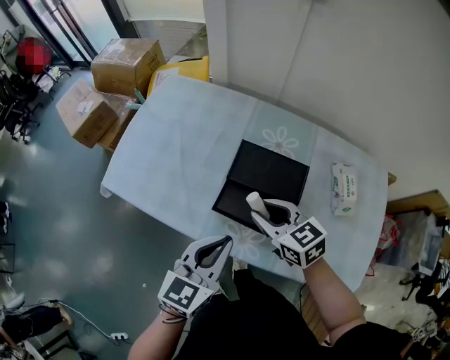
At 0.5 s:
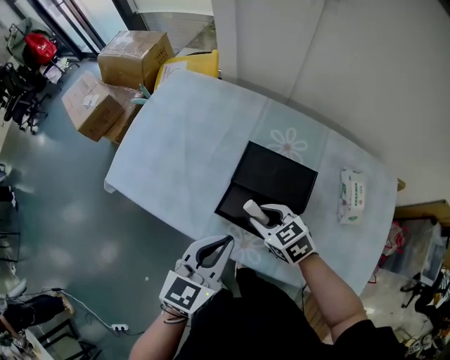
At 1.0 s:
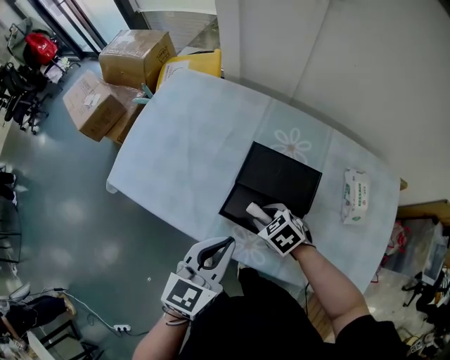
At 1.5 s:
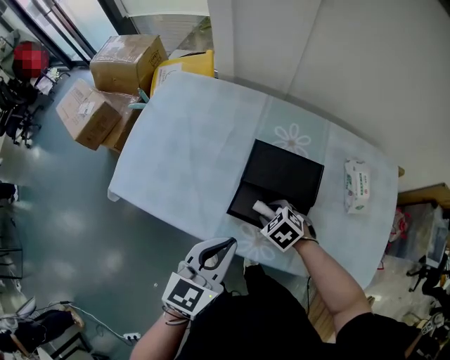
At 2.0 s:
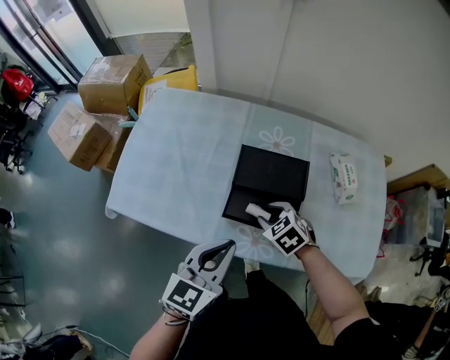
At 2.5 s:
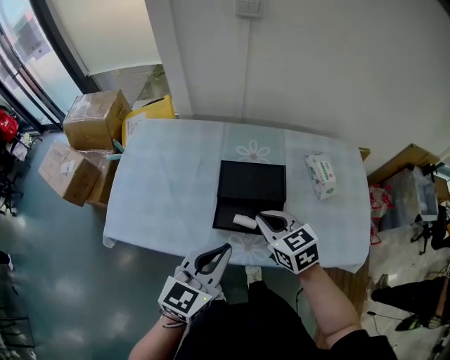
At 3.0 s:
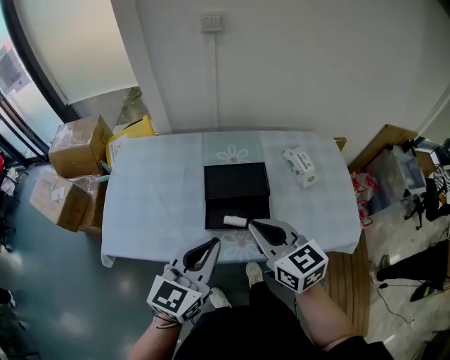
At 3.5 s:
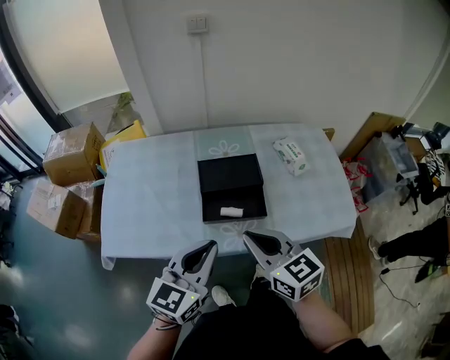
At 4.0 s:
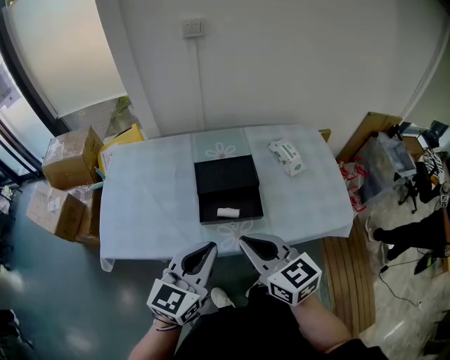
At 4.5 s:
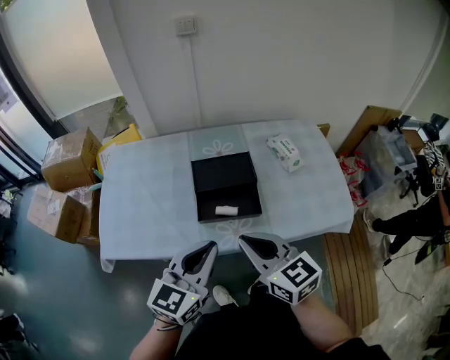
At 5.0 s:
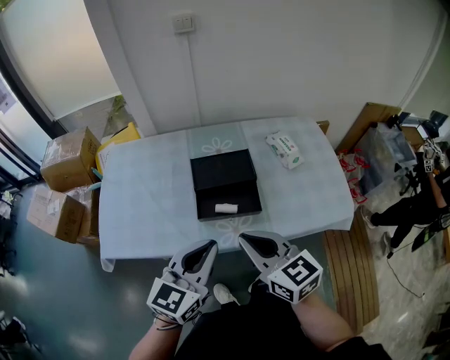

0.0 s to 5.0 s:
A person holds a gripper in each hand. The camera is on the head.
0.0 to 2.5 s: The right gripper moves some 15 cm downward and comes back, rotates some 20 degrees, and closes up, while the left gripper moves about 5 cm.
2.5 to 5.0 s: The right gripper travels backward and upward by about 20 cm, and swivels some 20 degrees; the left gripper travels backward by roughly 5 cm.

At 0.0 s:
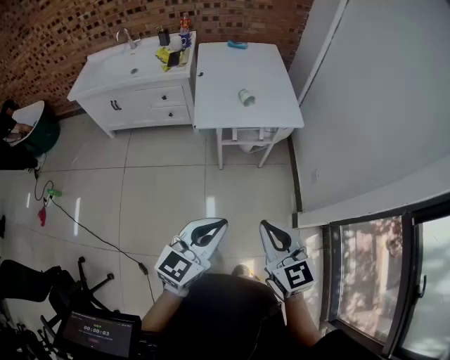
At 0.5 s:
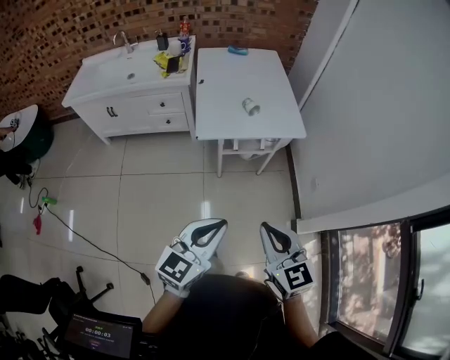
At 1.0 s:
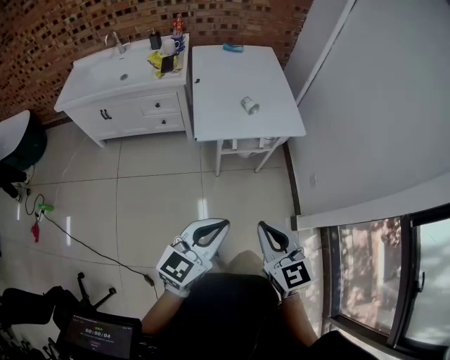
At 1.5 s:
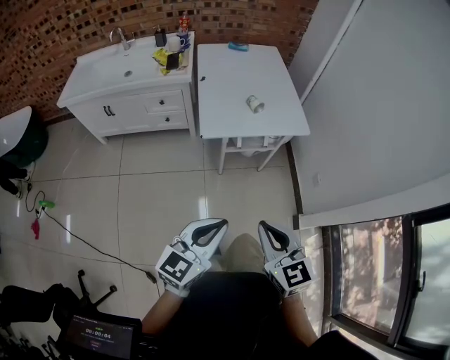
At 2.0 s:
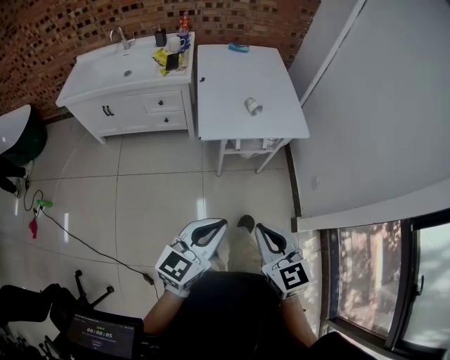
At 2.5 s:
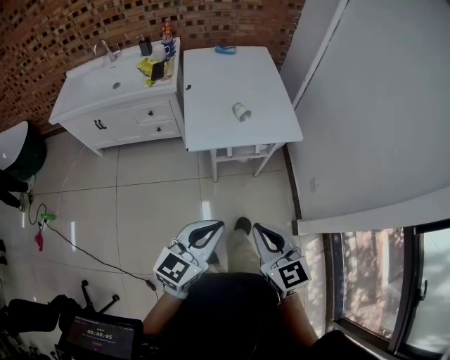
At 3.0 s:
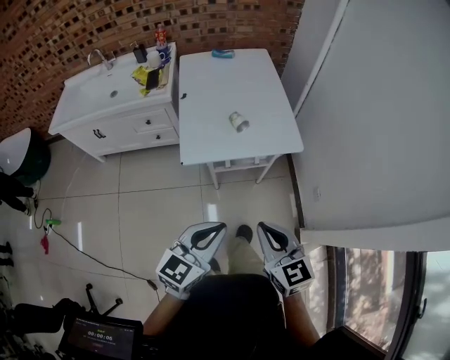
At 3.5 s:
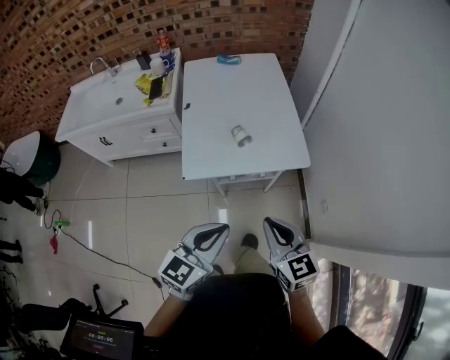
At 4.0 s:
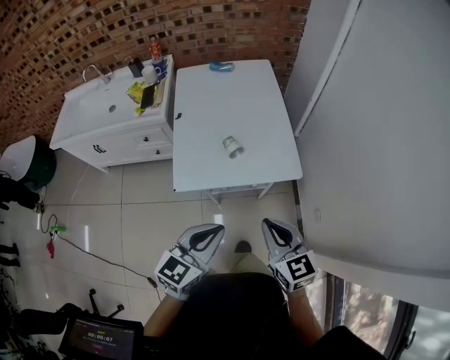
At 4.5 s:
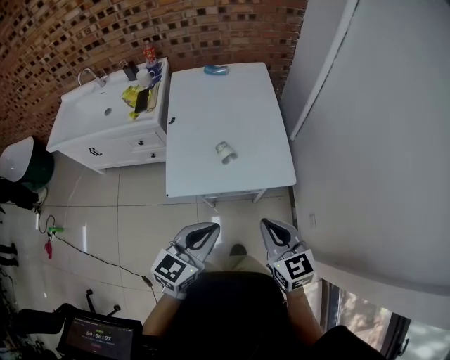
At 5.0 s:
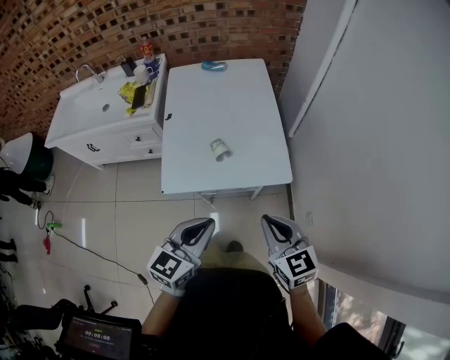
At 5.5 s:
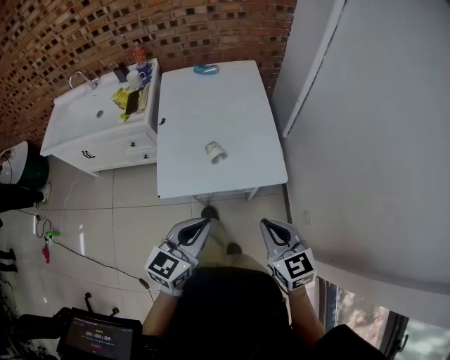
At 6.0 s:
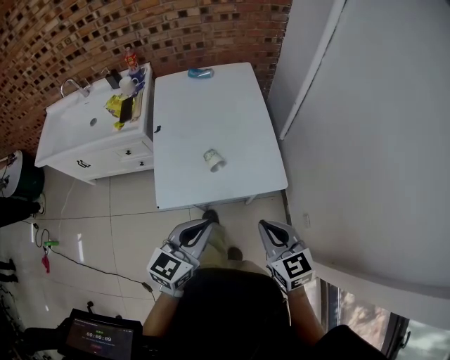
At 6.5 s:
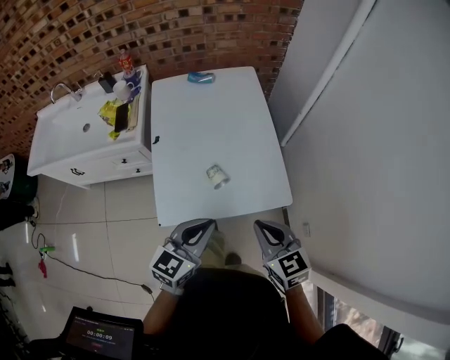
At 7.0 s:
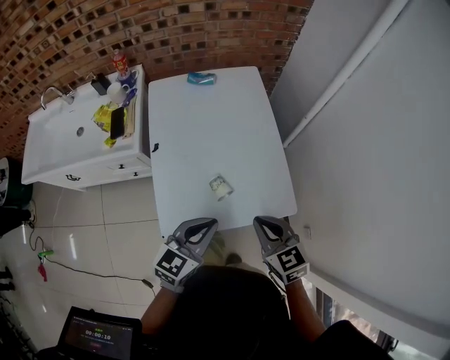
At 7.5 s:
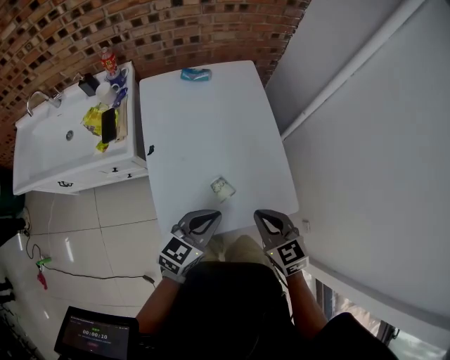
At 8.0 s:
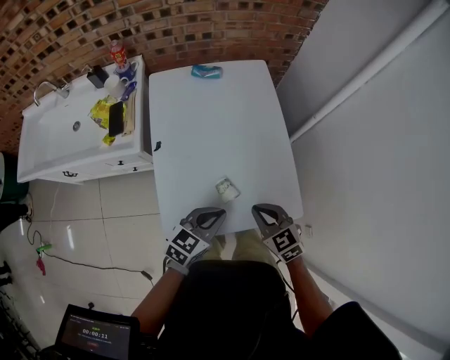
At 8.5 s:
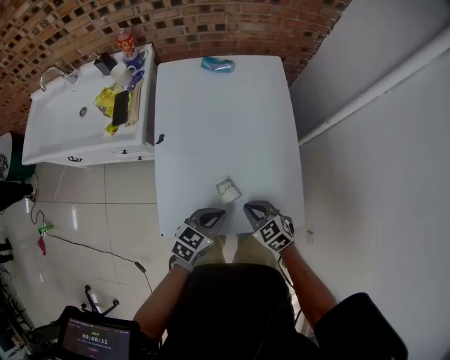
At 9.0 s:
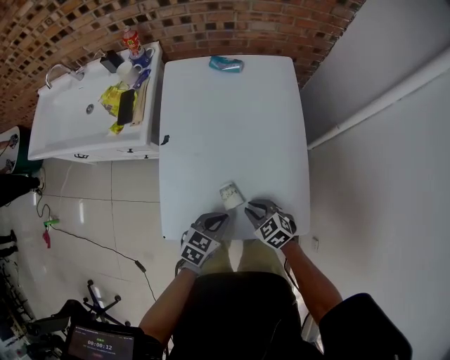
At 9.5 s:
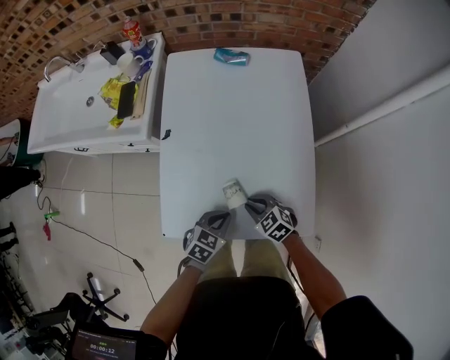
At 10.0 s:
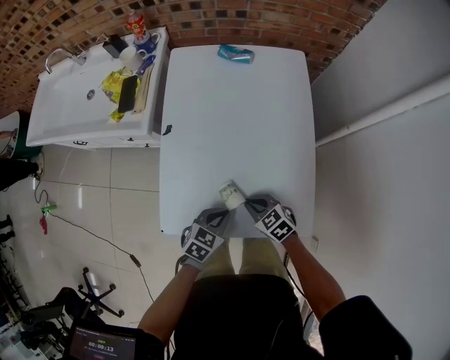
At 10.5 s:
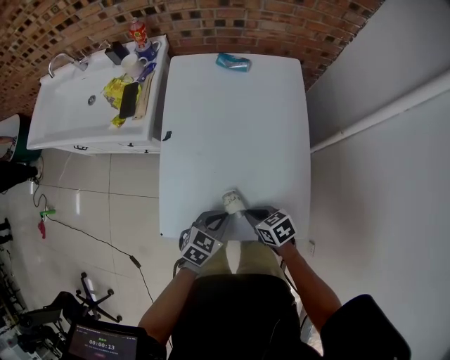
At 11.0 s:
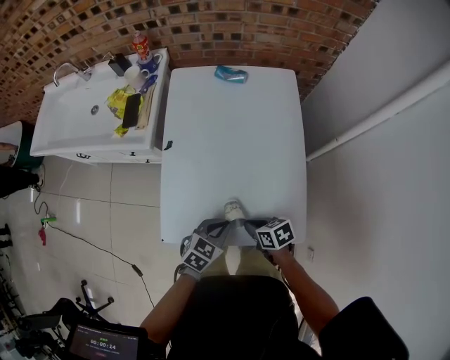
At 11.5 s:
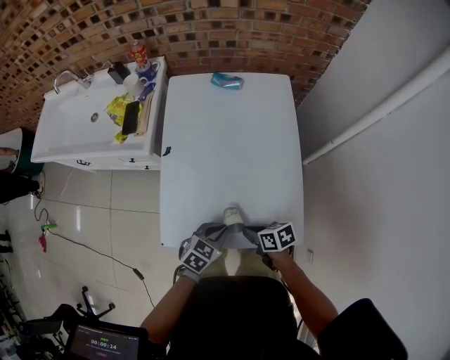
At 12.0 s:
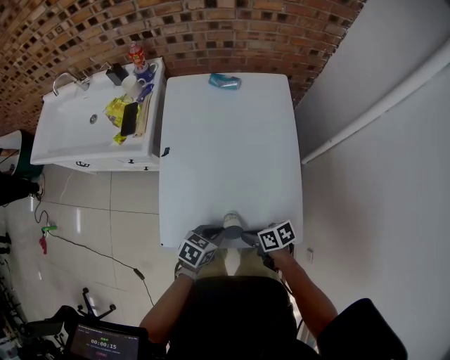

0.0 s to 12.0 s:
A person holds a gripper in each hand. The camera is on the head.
0.0 to 2.0 s: The left gripper moves to the left and forward, approximately 10 cm, while the right gripper moves to the left, approximately 10 cm.
2.0 to 4.0 s: Both grippers move forward and to the right, about 30 cm.
4.0 to 6.0 s: The two grippers go some 5 cm forward.
6.0 to 8.0 s: The left gripper moves forward and downward, about 20 cm, while the right gripper moves forward, downward and to the left, about 25 cm.
8.0 to 10.0 s: The grippers both shift downward by approximately 15 cm. The right gripper turns by about 30 degrees. Meanwhile the left gripper changes its angle by approximately 20 degrees.
10.0 to 12.0 s: The right gripper moves roughly 10 cm, and rolls clockwise, seen from behind, by roughly 50 degrees.

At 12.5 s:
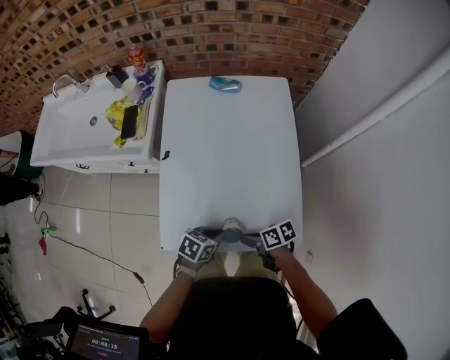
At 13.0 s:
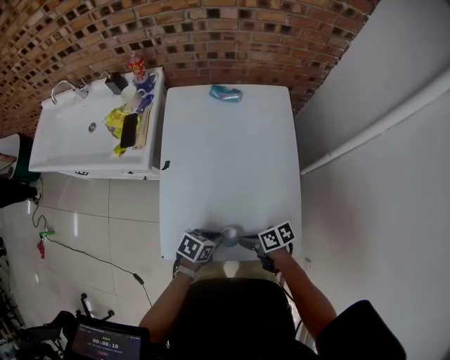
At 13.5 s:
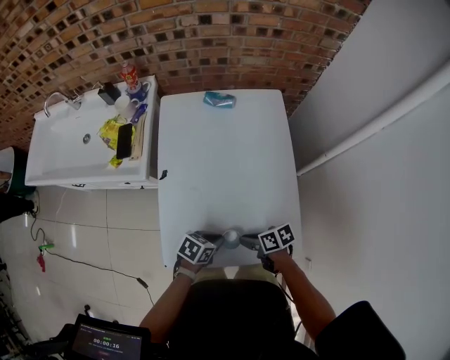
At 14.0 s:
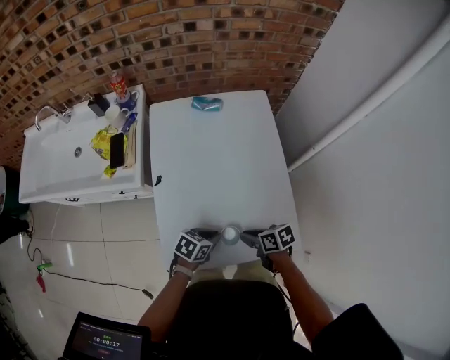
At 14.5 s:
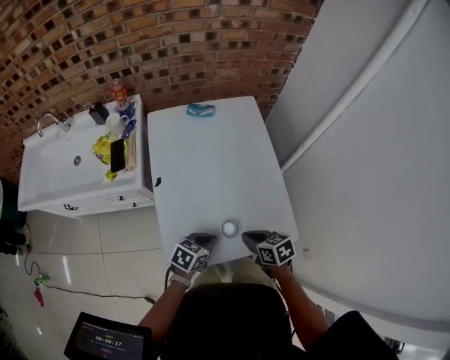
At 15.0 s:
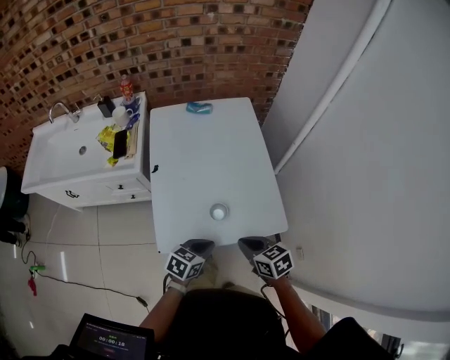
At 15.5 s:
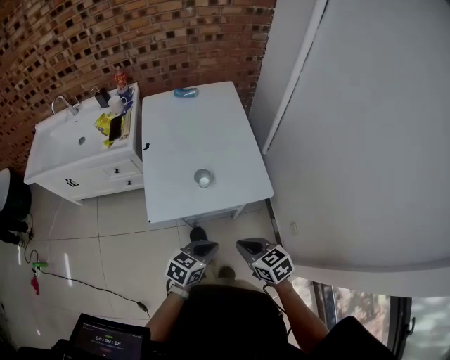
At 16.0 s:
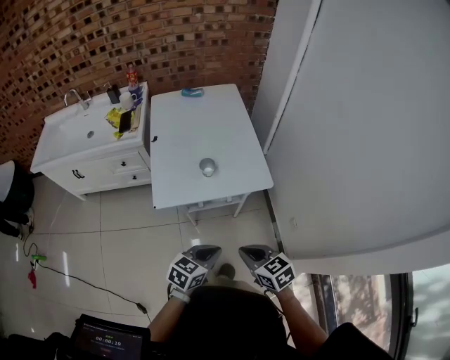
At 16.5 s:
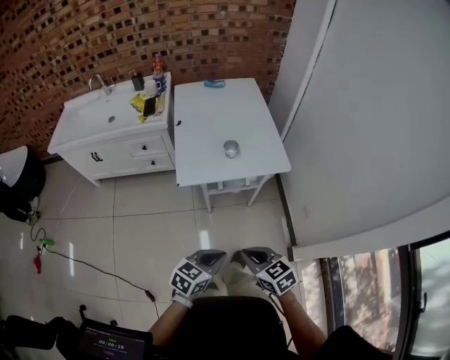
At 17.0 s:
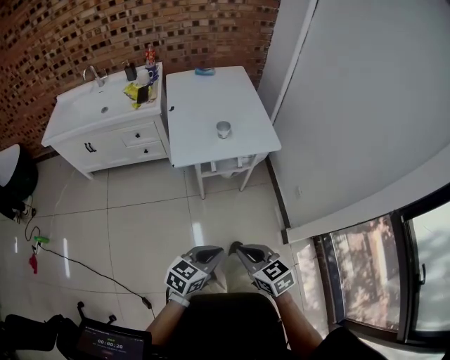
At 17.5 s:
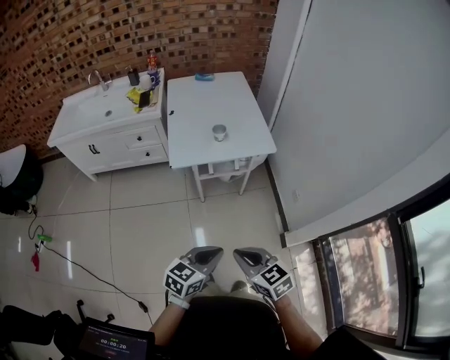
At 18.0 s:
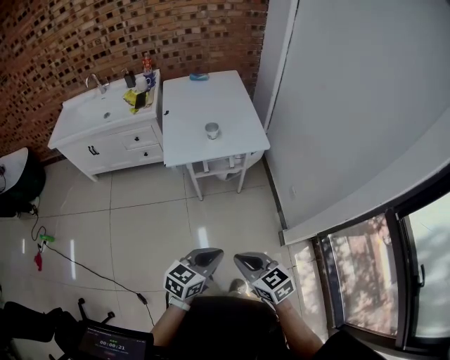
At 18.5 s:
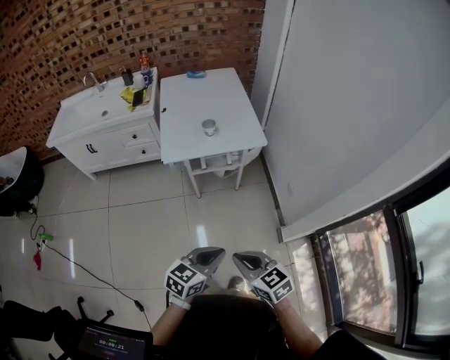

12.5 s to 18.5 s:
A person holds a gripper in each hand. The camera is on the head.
12.5 to 14.5 s: The right gripper moves upward, some 10 cm, and rotates some 40 degrees, while the left gripper shifts about 5 cm upward.
14.5 to 16.5 s: The two grippers travel together, backward, about 50 cm. The right gripper turns by approximately 20 degrees.
16.5 to 18.5 s: The right gripper shifts about 15 cm backward. The left gripper shifts approximately 15 cm backward and to the right.

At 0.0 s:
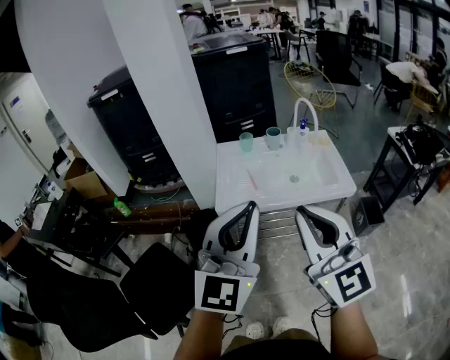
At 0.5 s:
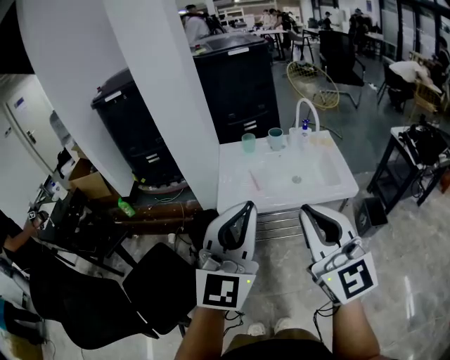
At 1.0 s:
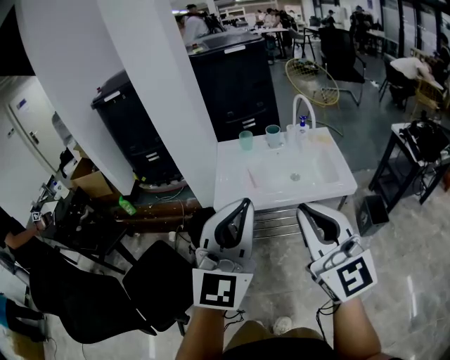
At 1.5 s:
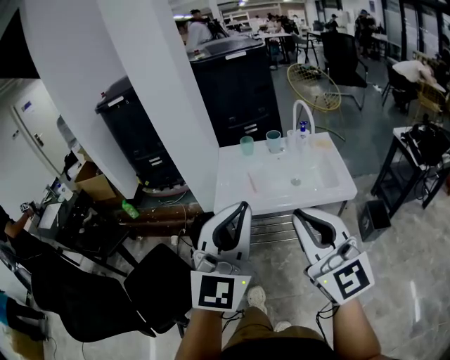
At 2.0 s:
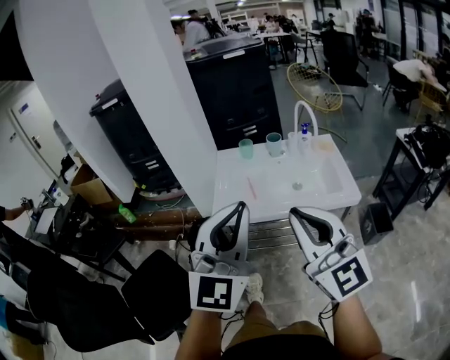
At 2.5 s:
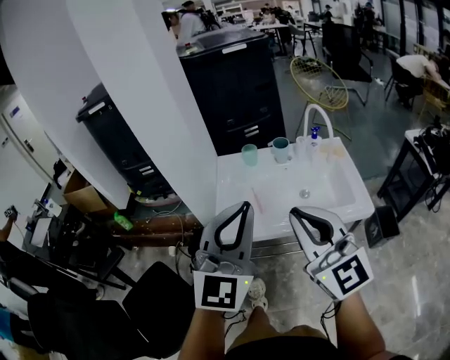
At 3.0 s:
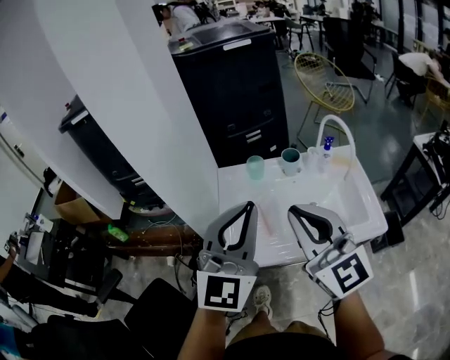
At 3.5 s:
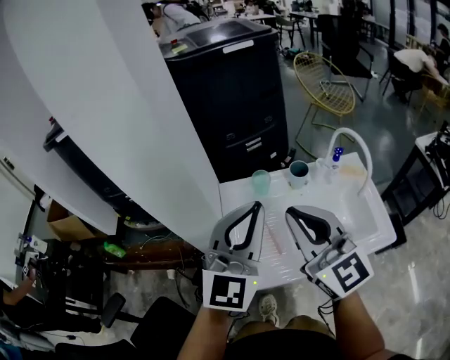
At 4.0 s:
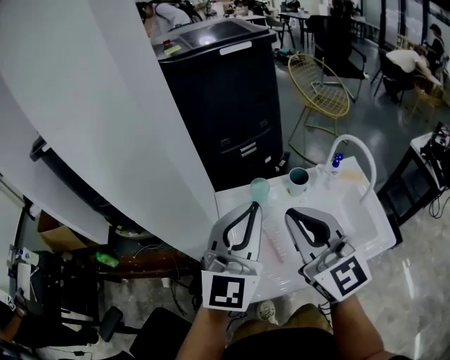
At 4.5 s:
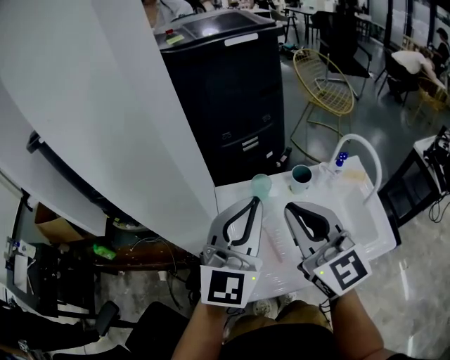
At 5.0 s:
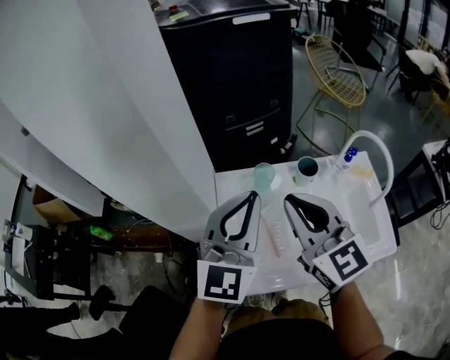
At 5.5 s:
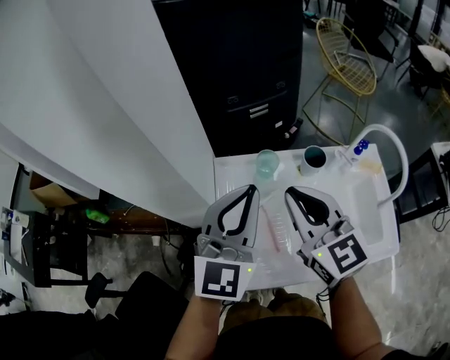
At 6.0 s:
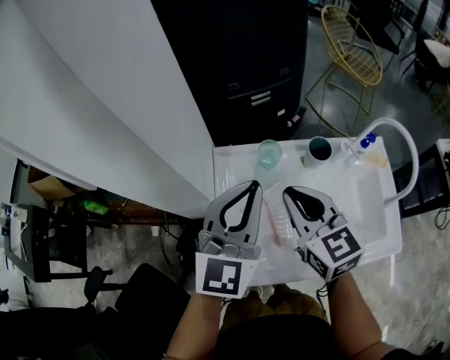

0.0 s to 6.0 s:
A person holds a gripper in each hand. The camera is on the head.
0.0 to 2.0 s: The left gripper shifts by roughly 5 cm. Meanwhile the right gripper ends up about 5 cm from where it was.
2.0 to 4.0 s: Both grippers move forward, some 40 cm.
4.0 to 6.0 s: Both grippers move downward and forward, approximately 15 cm. The right gripper changes its angle by some 30 degrees.
